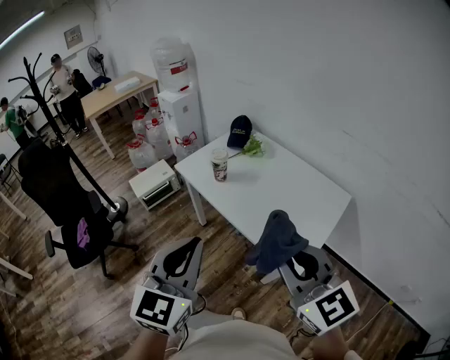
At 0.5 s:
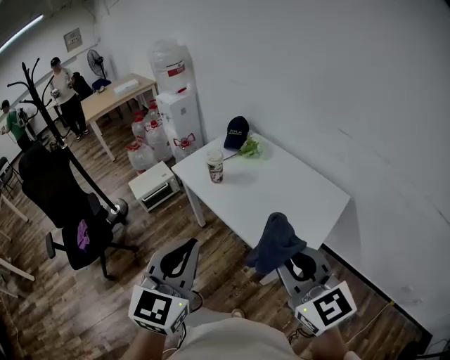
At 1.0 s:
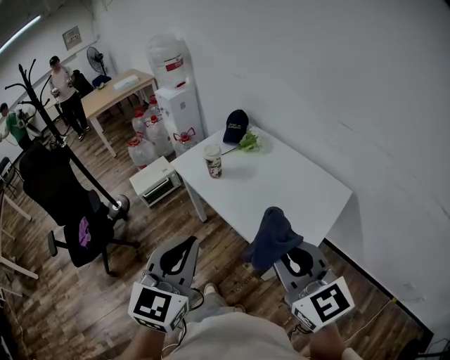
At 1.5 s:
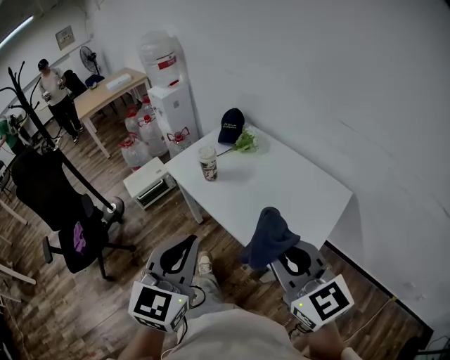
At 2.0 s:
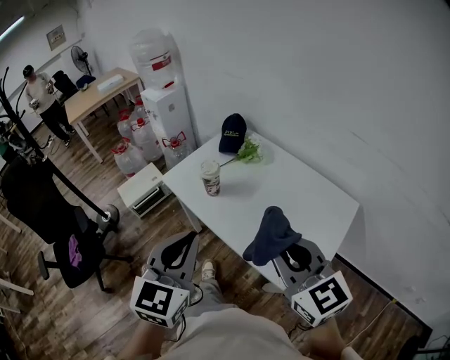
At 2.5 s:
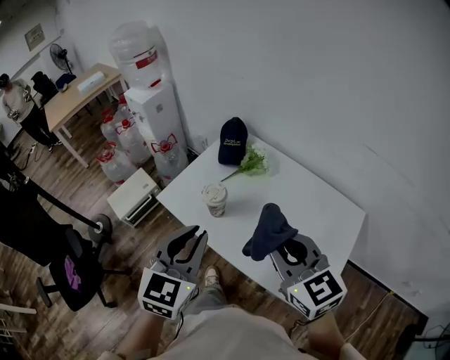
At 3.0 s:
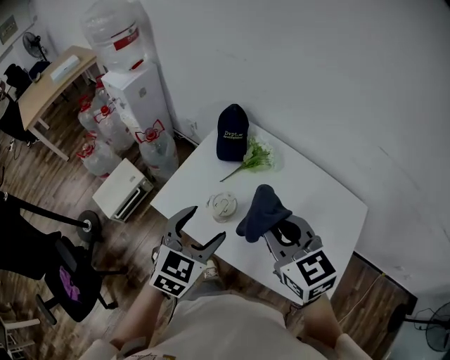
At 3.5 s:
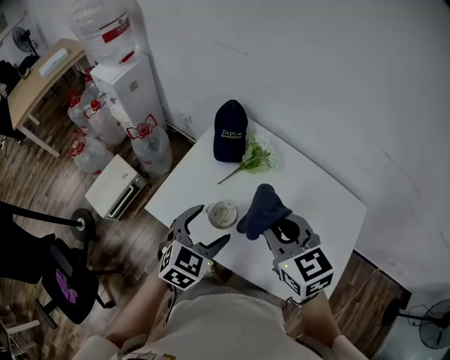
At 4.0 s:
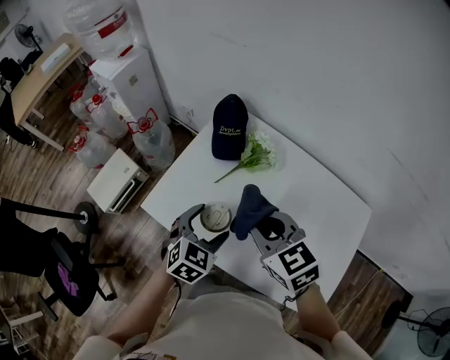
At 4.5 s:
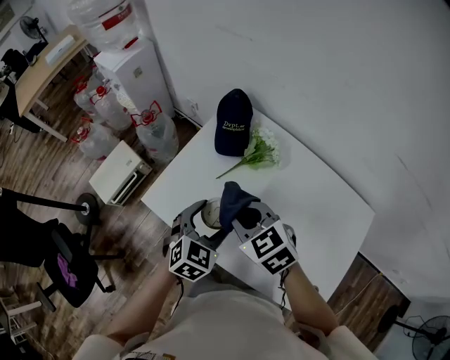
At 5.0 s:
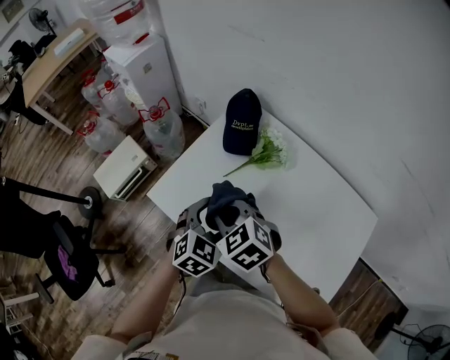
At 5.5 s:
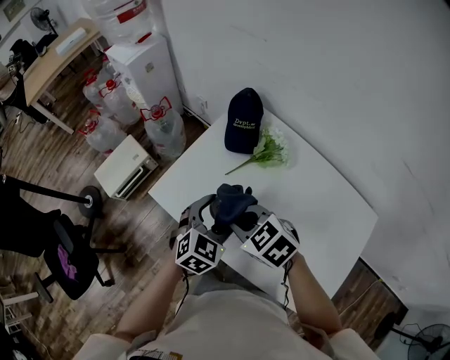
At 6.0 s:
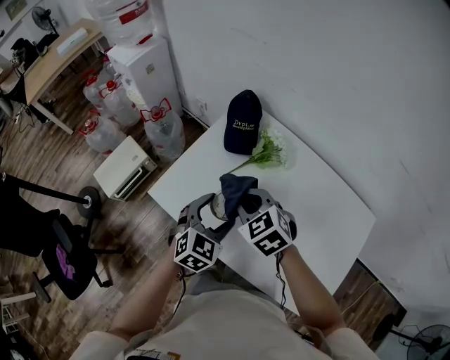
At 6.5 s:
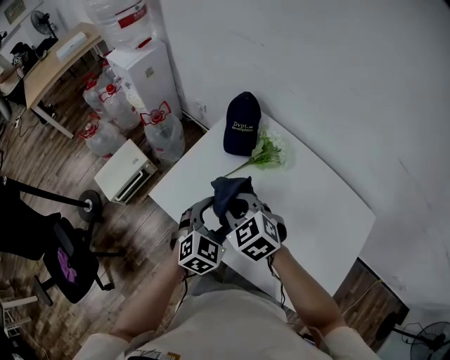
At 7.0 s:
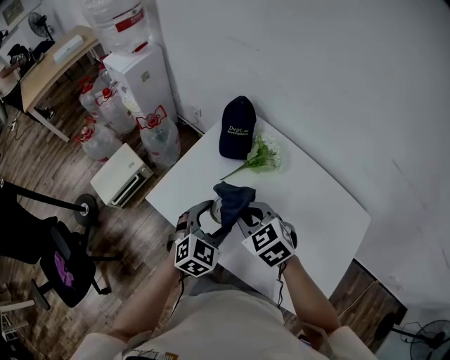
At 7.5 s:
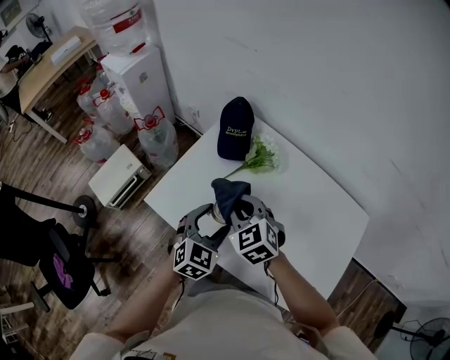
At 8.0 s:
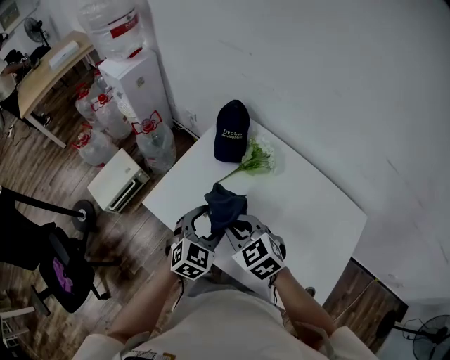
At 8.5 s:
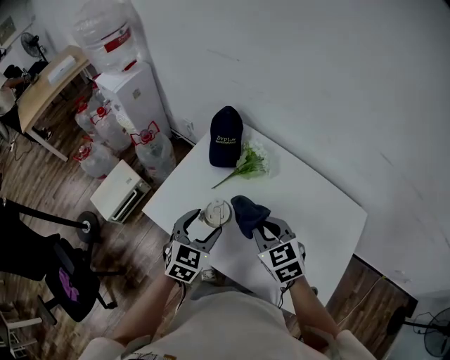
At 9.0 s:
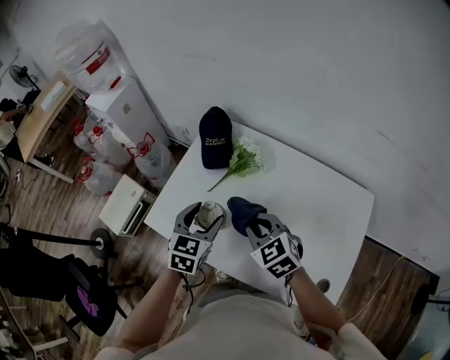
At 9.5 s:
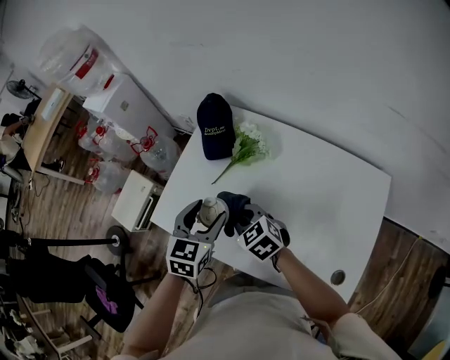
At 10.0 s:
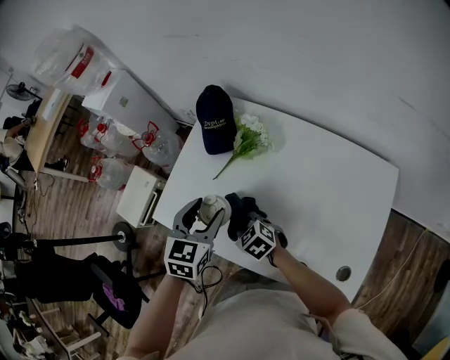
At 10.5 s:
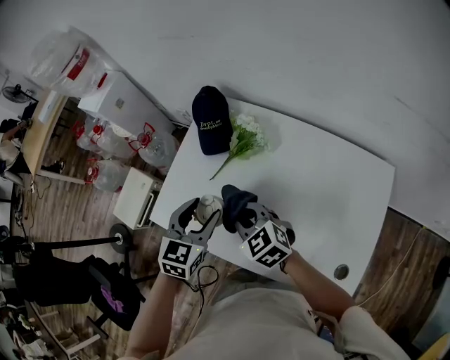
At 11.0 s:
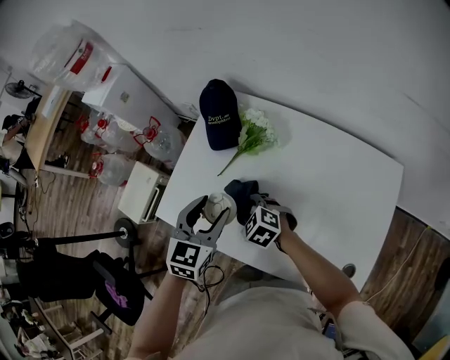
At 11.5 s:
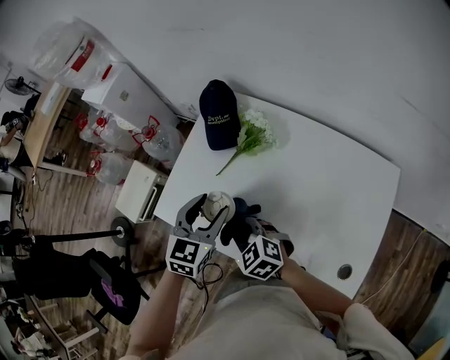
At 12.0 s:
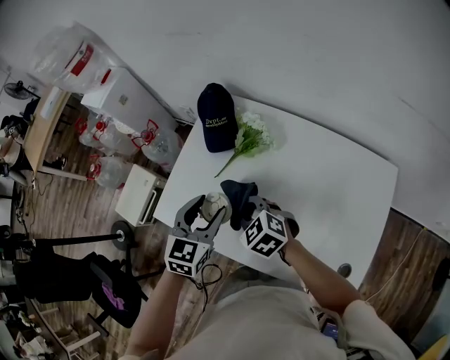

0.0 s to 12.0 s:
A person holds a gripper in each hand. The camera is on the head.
0.0 to 2.0 s: Both grippers move forward, about 15 cm.
2.0 to 4.0 s: Both grippers move forward and downward, some 40 cm. The right gripper turns by approximately 30 degrees, while the left gripper swivels about 40 degrees, and opens its fingers.
4.0 to 6.0 s: The right gripper is displaced downward by about 10 cm.
6.0 to 8.0 s: The right gripper goes about 5 cm backward.
8.0 to 10.0 s: The left gripper moves approximately 5 cm. Meanwhile the right gripper travels downward by roughly 15 cm.
10.0 to 12.0 s: The right gripper moves up and down over approximately 10 cm, changing direction 2 times.

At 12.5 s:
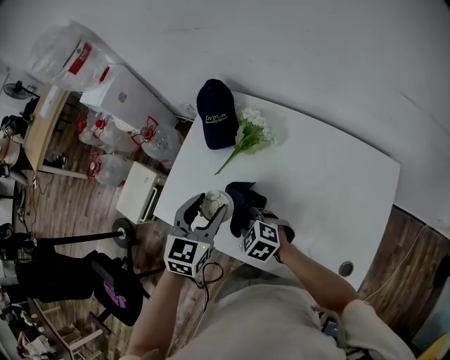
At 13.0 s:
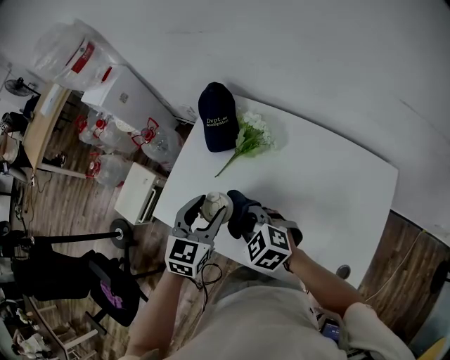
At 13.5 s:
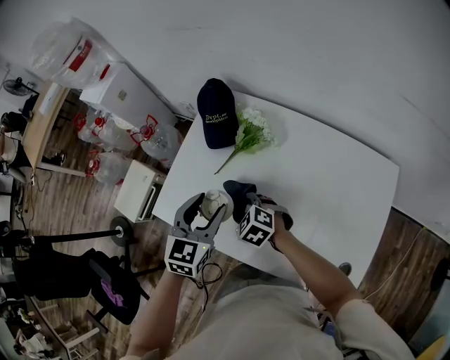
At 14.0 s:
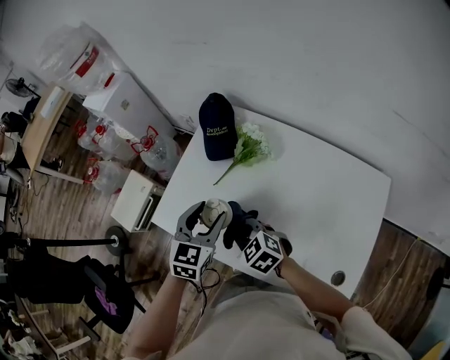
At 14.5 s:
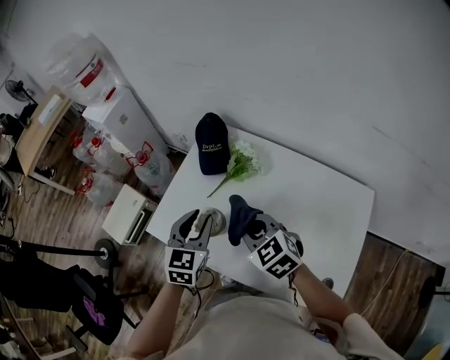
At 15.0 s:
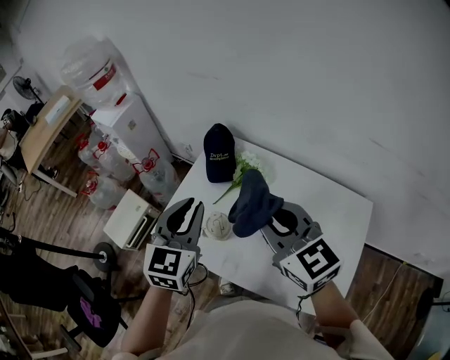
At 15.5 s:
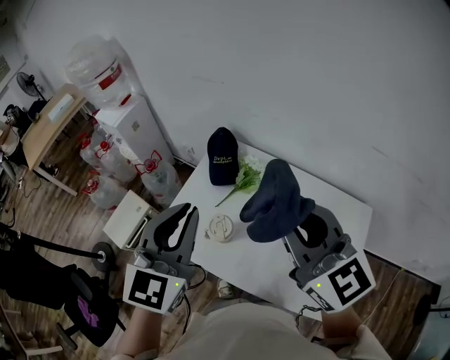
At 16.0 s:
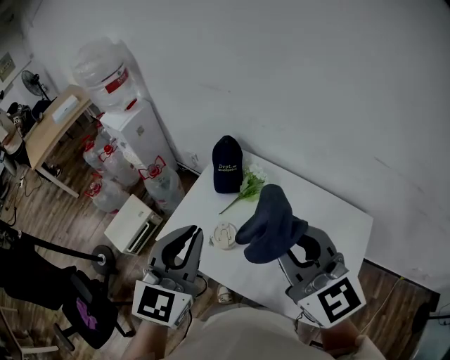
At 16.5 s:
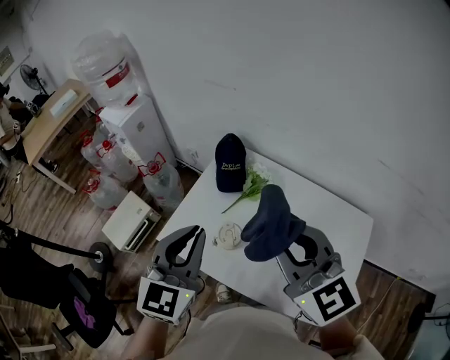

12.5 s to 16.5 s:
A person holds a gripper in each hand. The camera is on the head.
12.5 to 14.5 s: The right gripper swings up and down, approximately 20 cm each way, with 2 reversals.
14.5 to 16.5 s: The grippers both shift upward by roughly 20 cm. The right gripper angles its fingers upward, by roughly 30 degrees.

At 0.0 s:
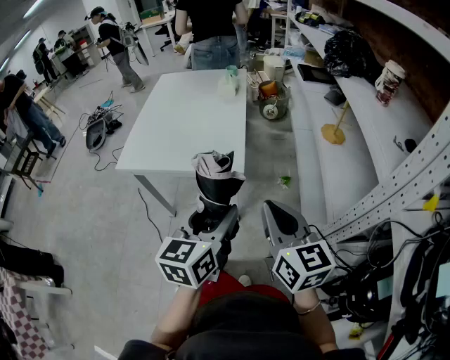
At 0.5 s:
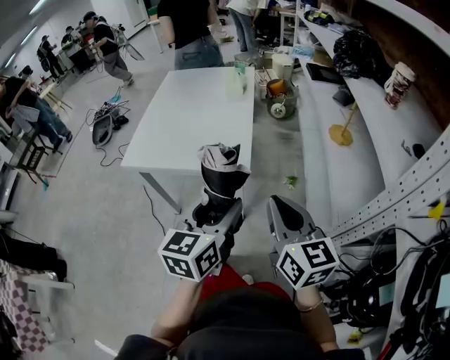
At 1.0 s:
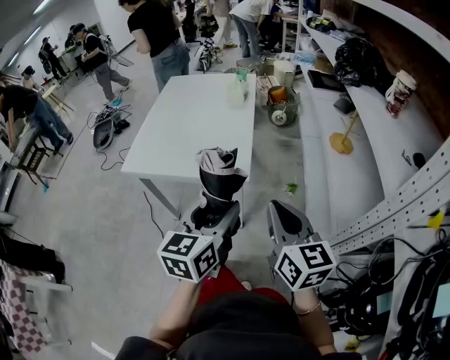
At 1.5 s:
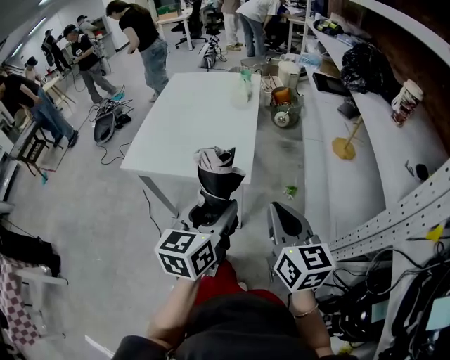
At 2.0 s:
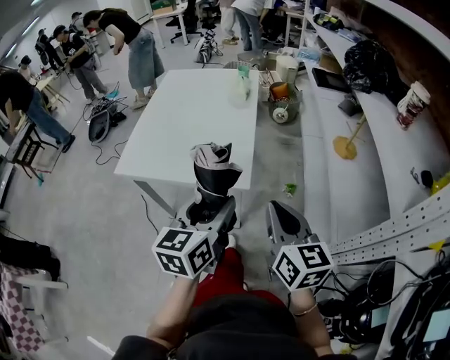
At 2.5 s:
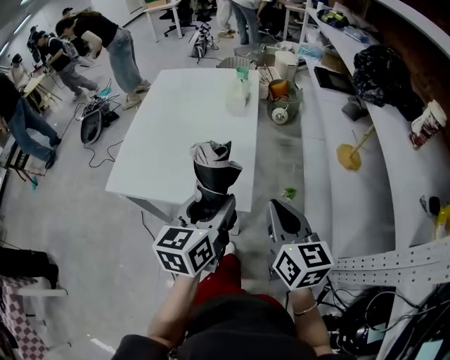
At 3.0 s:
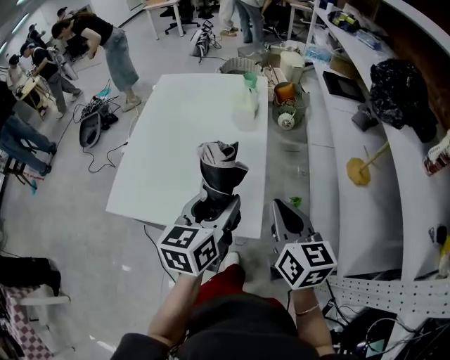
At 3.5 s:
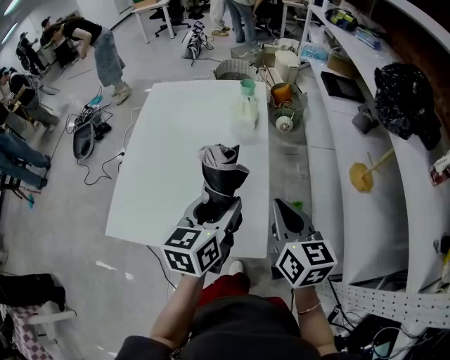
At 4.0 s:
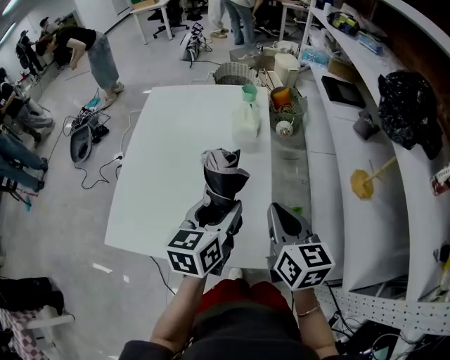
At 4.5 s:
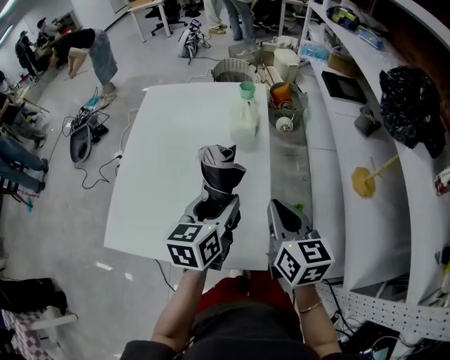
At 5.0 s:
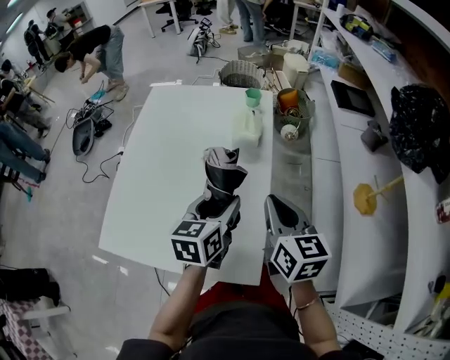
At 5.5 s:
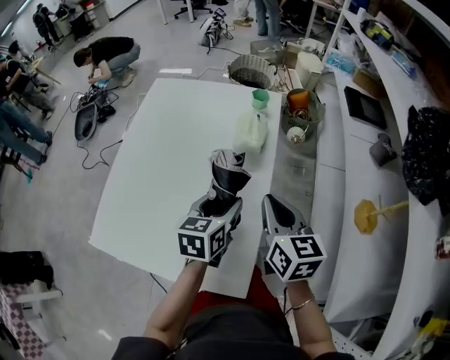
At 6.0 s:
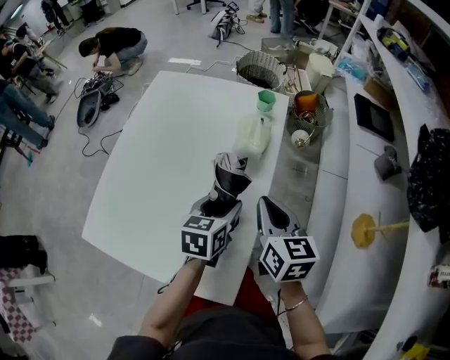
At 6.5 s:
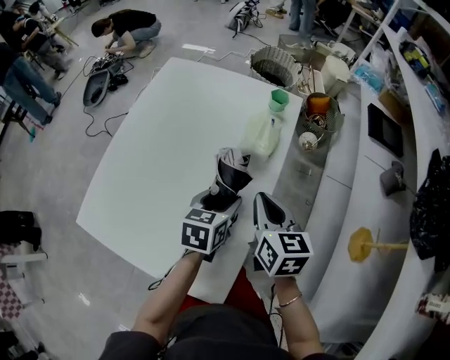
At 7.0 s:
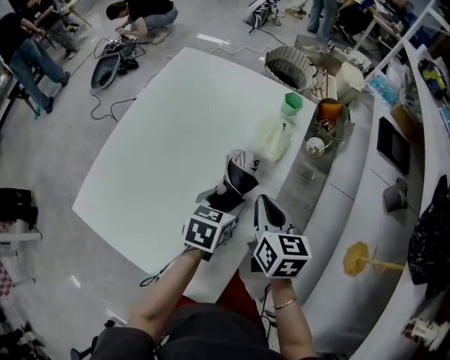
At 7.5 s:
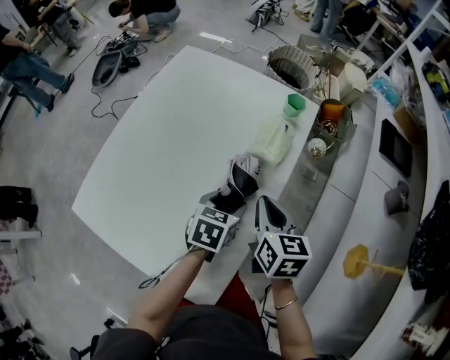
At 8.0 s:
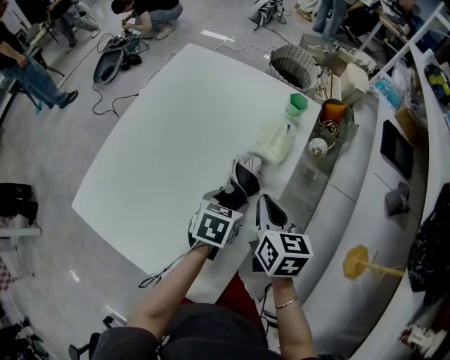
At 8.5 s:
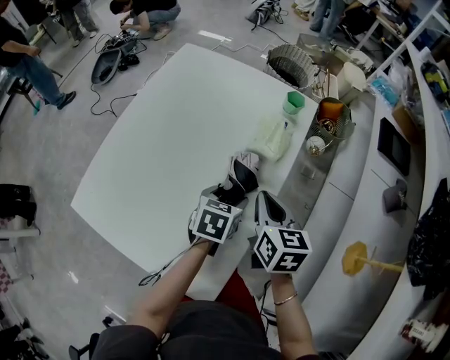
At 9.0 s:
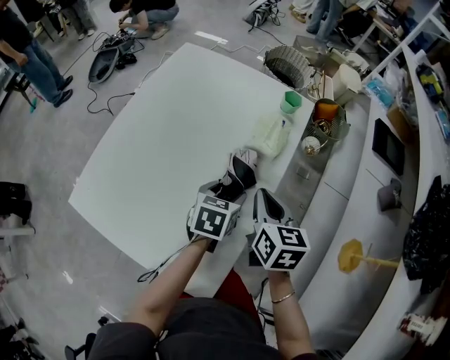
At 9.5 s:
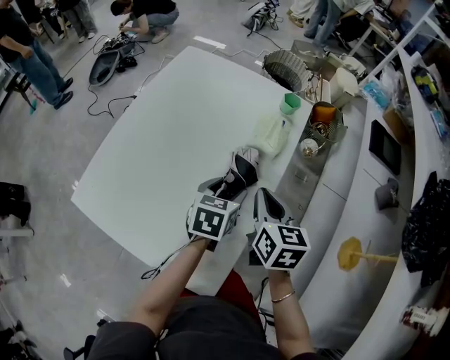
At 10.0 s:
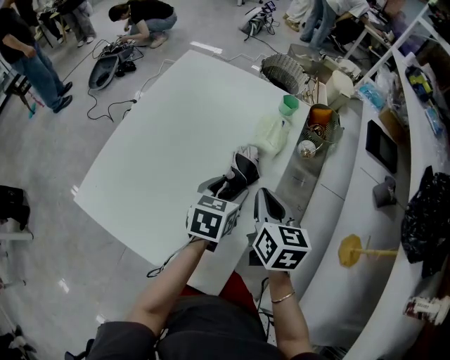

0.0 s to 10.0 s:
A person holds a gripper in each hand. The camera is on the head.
0.0 to 2.0 s: Both grippers move forward, some 10 cm.
2.0 to 4.0 s: Both grippers move forward, roughly 30 cm.
4.0 to 6.0 s: The right gripper is displaced forward by about 15 cm. The left gripper shifts about 20 cm forward and downward.
6.0 to 8.0 s: The left gripper moves downward, roughly 5 cm, while the right gripper travels downward and forward by about 10 cm.
8.0 to 10.0 s: The left gripper moves upward, roughly 5 cm. The right gripper ends up some 5 cm from where it was.

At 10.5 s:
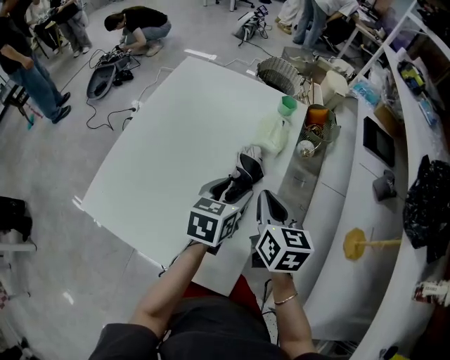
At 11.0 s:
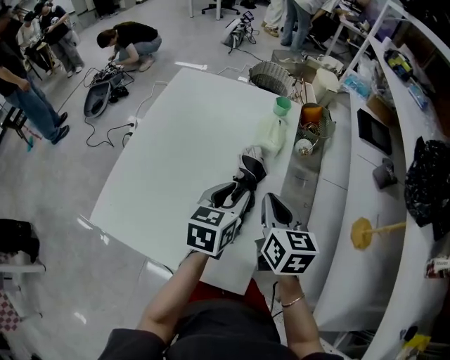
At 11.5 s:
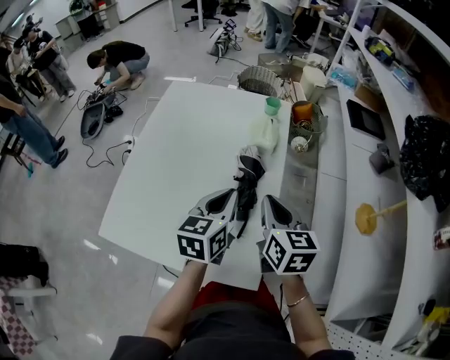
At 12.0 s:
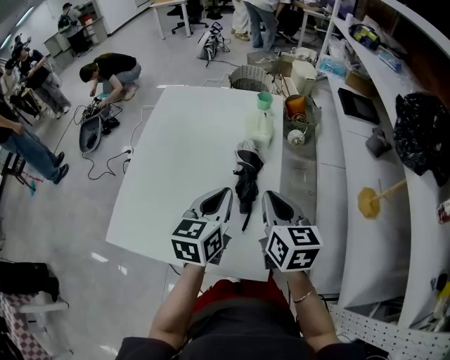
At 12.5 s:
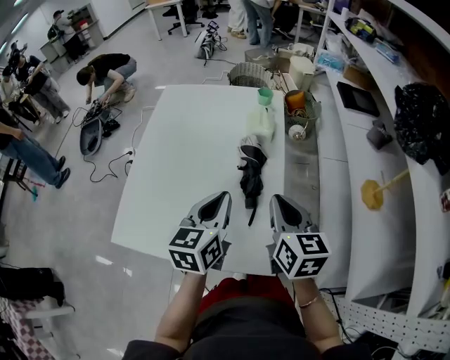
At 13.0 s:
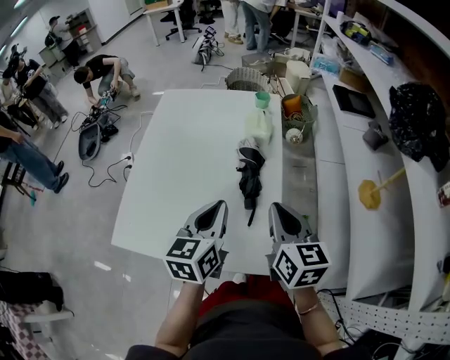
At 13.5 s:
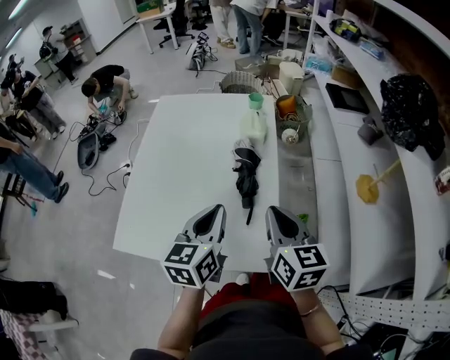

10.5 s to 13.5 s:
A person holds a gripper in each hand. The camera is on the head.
10.5 to 12.0 s: The right gripper is displaced backward by about 10 cm. The left gripper moves backward and upward, some 10 cm, and closes up.
12.0 to 13.5 s: The grippers both shift backward by about 5 cm.
